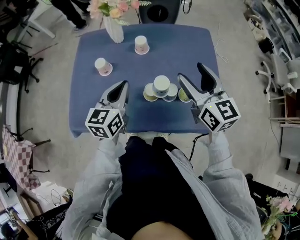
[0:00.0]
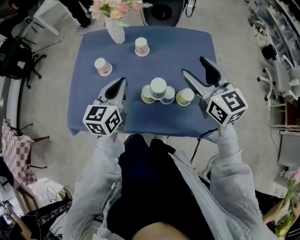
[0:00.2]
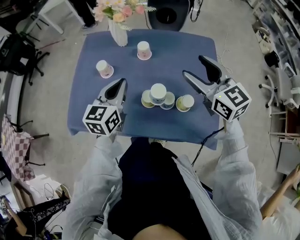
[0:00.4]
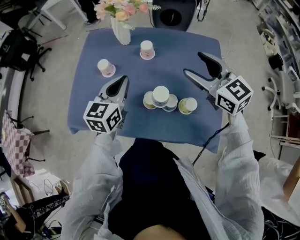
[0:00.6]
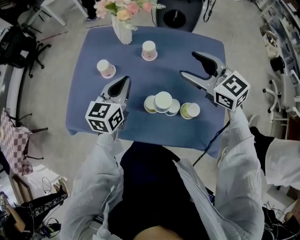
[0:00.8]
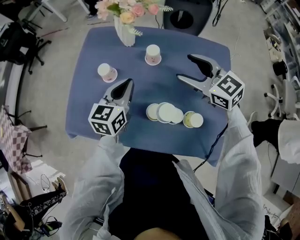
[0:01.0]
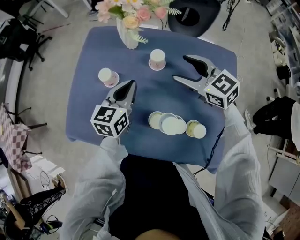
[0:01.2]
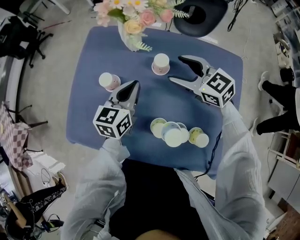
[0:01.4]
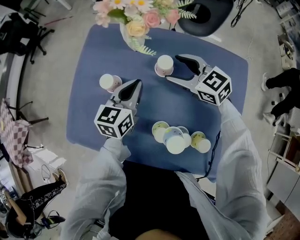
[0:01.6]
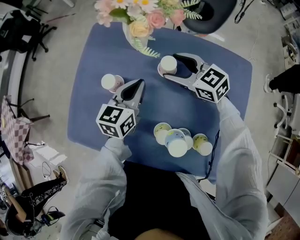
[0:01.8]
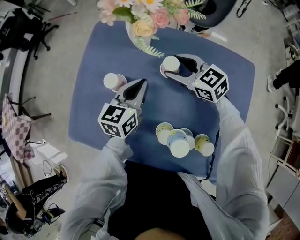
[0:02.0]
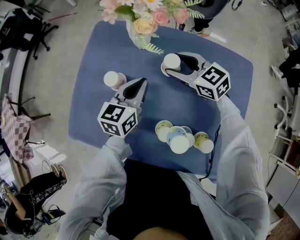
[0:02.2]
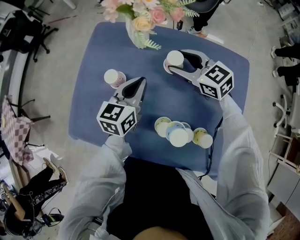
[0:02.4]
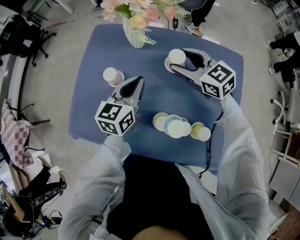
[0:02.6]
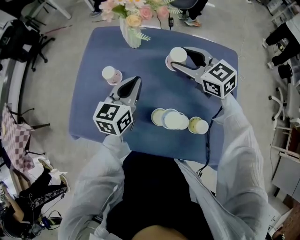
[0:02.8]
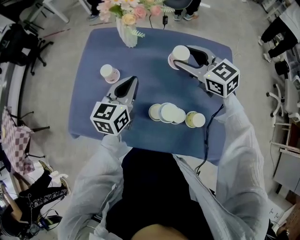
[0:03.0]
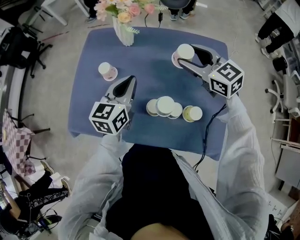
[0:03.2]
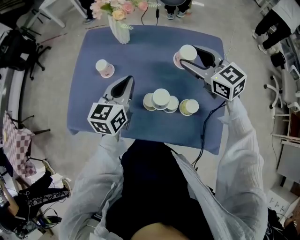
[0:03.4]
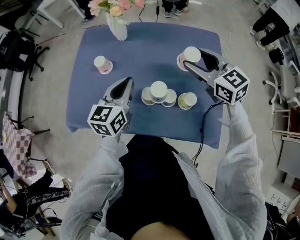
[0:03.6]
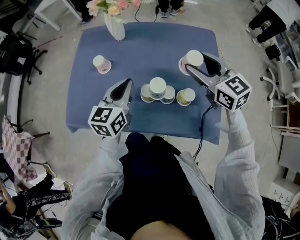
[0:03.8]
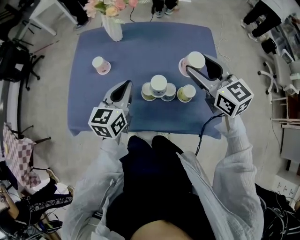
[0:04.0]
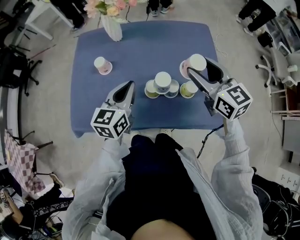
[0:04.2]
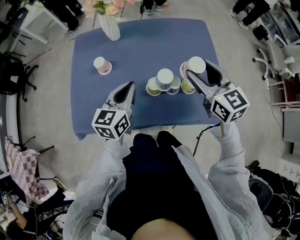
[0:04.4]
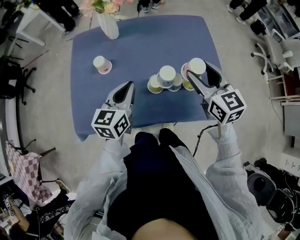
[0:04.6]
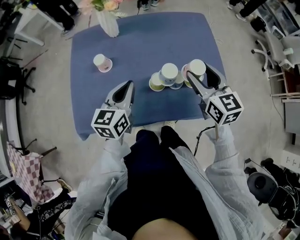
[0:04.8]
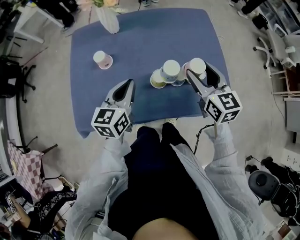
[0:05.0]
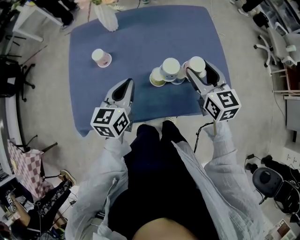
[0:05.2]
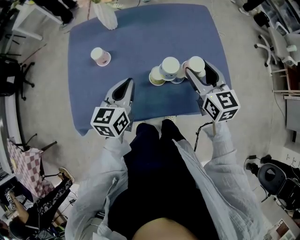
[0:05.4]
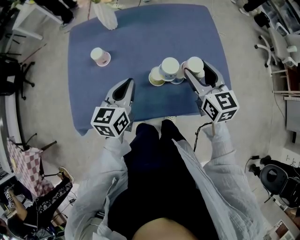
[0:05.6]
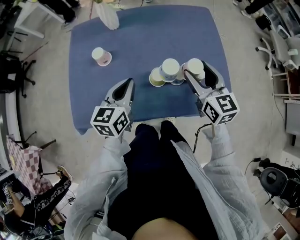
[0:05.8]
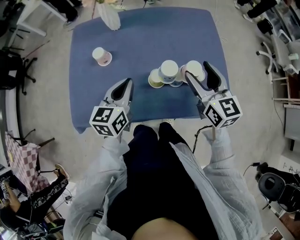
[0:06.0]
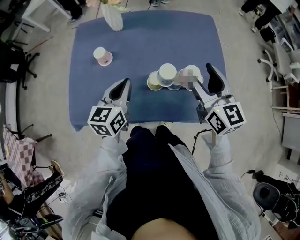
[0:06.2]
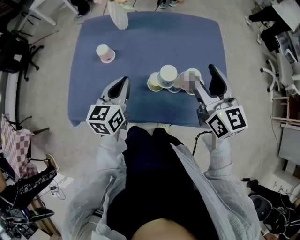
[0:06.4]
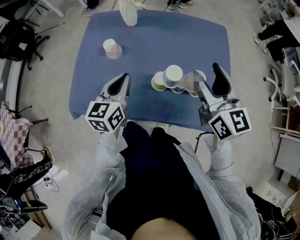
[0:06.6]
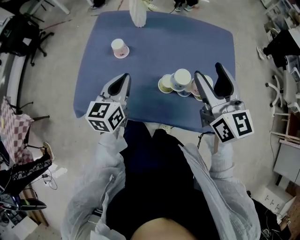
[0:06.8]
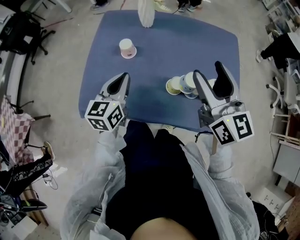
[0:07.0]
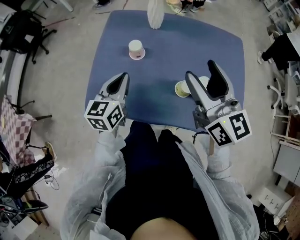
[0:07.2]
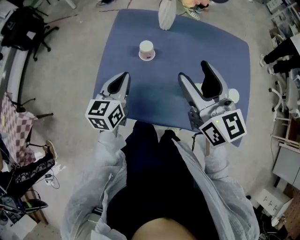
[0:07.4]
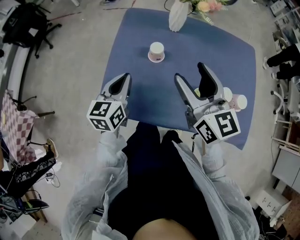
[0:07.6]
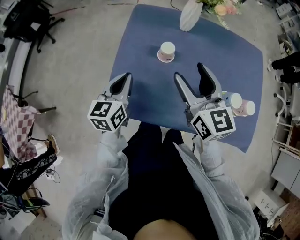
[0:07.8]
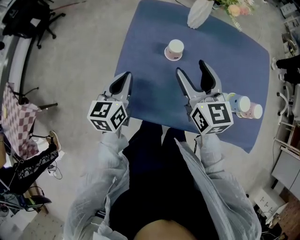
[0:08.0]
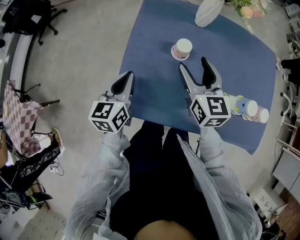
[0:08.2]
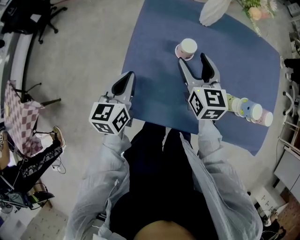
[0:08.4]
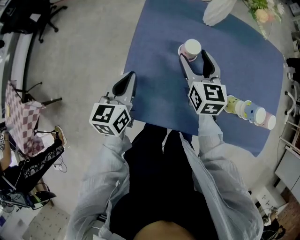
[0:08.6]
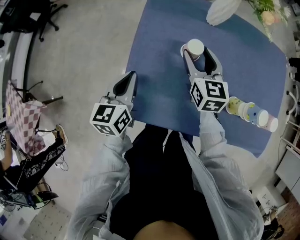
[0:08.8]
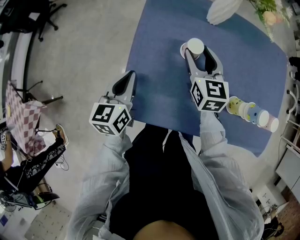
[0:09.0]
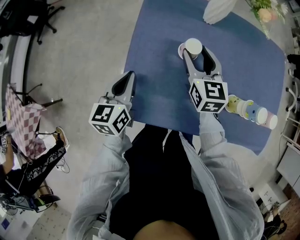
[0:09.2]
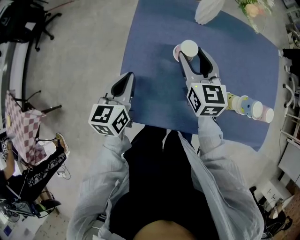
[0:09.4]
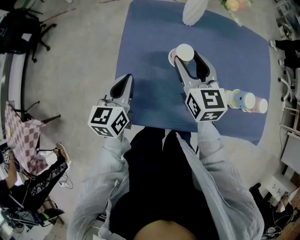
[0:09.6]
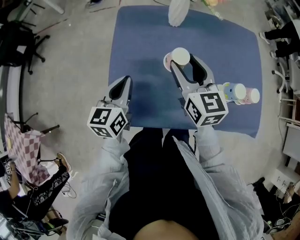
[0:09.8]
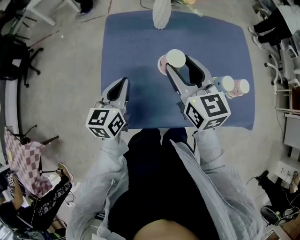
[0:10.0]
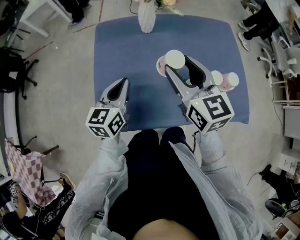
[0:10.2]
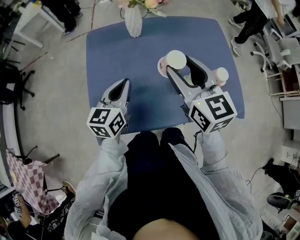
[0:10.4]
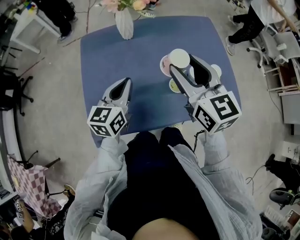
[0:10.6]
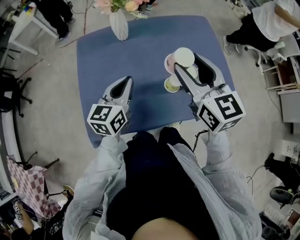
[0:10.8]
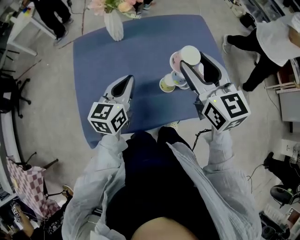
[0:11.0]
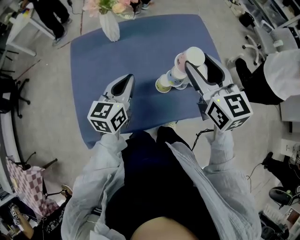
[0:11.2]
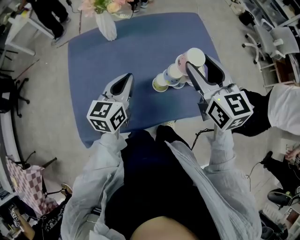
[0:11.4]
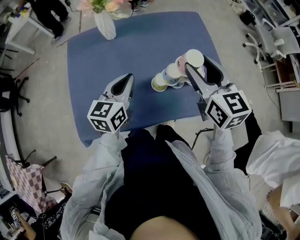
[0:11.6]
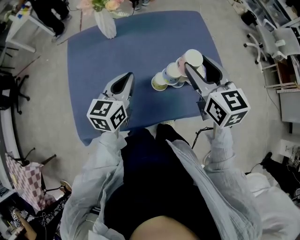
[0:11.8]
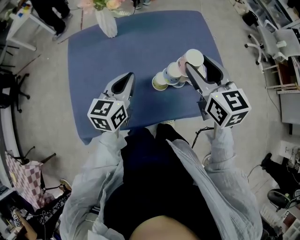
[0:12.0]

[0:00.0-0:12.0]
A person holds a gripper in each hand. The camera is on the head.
0:00.0 to 0:01.6: The left gripper shifts by some 20 cm, while the right gripper shifts by roughly 30 cm, and turns by approximately 50 degrees.
0:01.6 to 0:03.0: The left gripper goes about 10 cm backward and upward. The right gripper is displaced upward and backward by about 10 cm.
0:03.0 to 0:04.4: The left gripper goes some 10 cm backward, while the right gripper is displaced backward by roughly 20 cm, and swivels roughly 30 degrees.
0:06.0 to 0:07.6: The two grippers go some 25 cm to the left.
0:07.6 to 0:09.0: The right gripper travels downward, forward and to the left by about 25 cm, while the left gripper heads to the left and downward, covering roughly 10 cm.
0:09.0 to 0:10.4: The right gripper goes about 25 cm upward, to the right and backward, while the left gripper travels to the right and upward by roughly 20 cm, and swivels some 30 degrees.
0:10.4 to 0:12.0: Both grippers travel together to the right, roughly 15 cm.

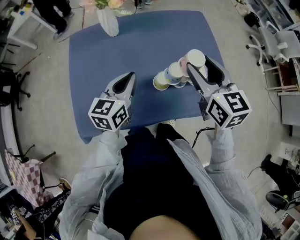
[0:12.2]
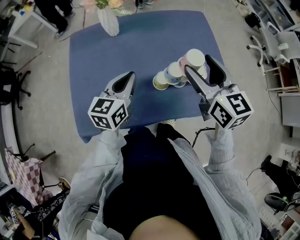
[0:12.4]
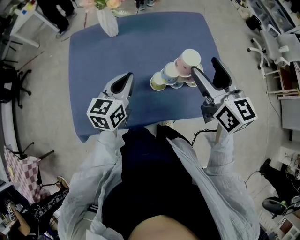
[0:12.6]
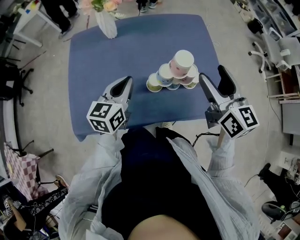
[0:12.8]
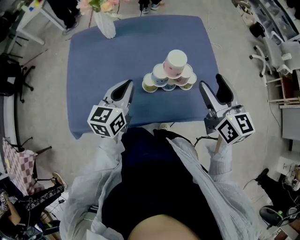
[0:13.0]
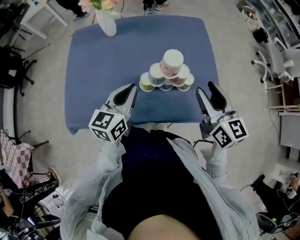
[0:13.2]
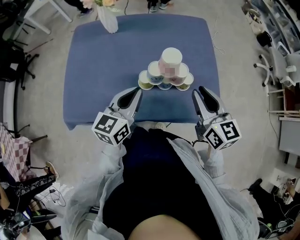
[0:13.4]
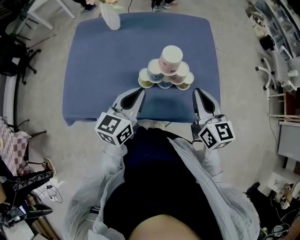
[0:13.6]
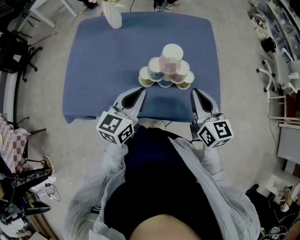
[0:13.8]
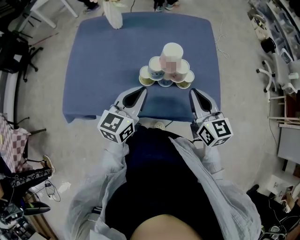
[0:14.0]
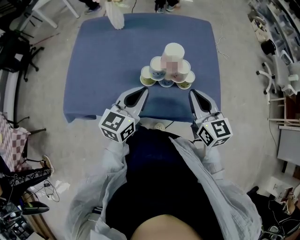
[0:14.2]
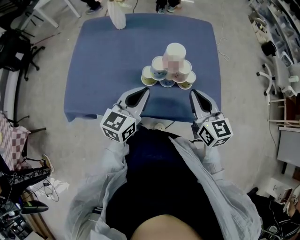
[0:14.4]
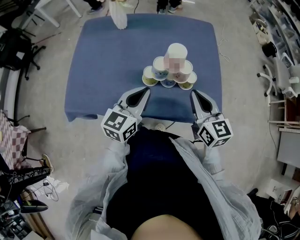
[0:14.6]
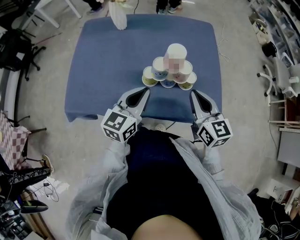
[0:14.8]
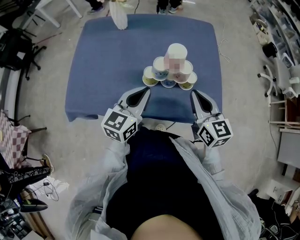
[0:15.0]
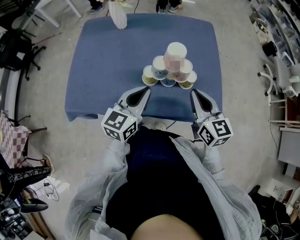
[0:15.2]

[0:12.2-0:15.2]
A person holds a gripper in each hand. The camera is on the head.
0:12.2 to 0:13.8: The right gripper shifts about 15 cm to the right, downward and backward, and closes up. The left gripper goes some 15 cm to the right and backward.
0:13.8 to 0:15.2: The grippers make only small movements.

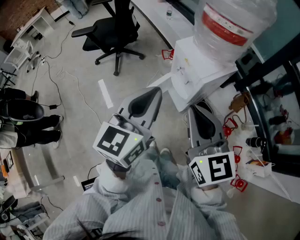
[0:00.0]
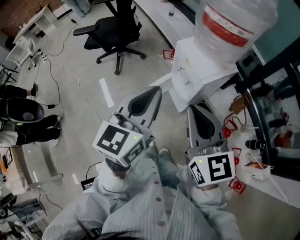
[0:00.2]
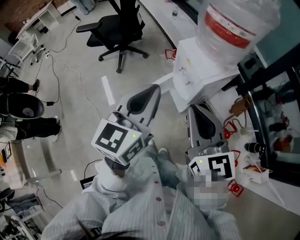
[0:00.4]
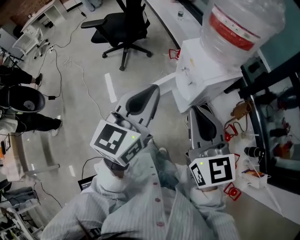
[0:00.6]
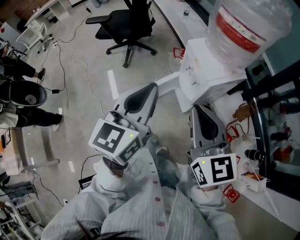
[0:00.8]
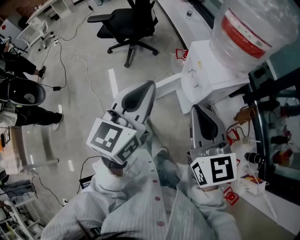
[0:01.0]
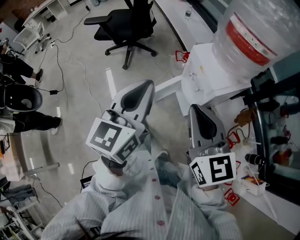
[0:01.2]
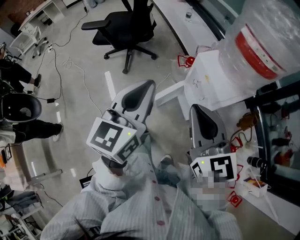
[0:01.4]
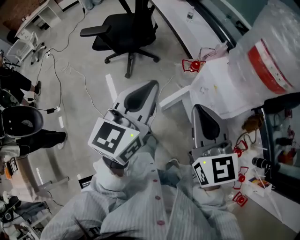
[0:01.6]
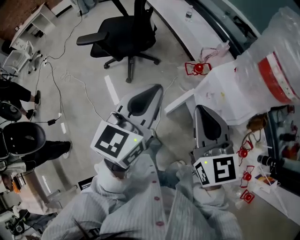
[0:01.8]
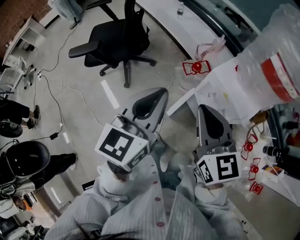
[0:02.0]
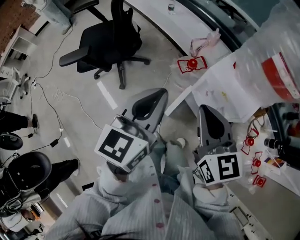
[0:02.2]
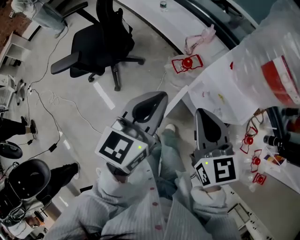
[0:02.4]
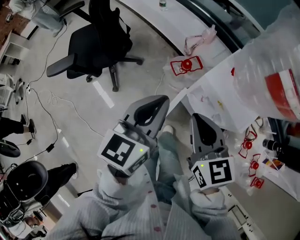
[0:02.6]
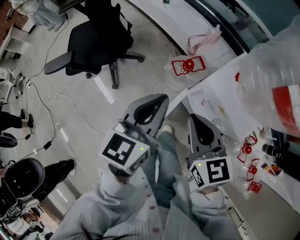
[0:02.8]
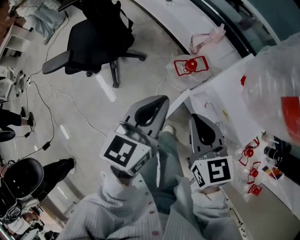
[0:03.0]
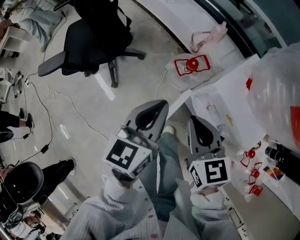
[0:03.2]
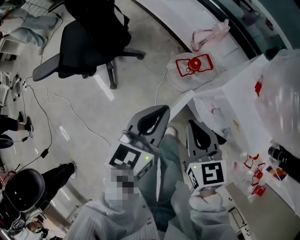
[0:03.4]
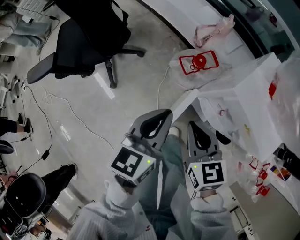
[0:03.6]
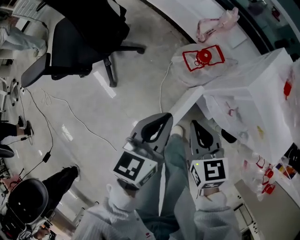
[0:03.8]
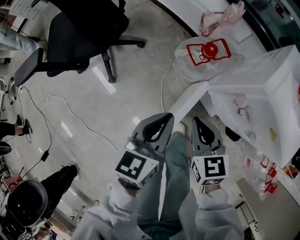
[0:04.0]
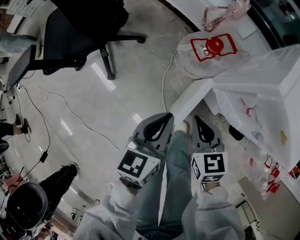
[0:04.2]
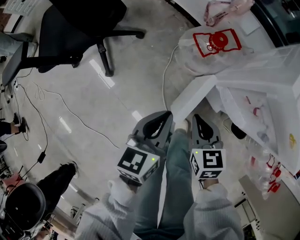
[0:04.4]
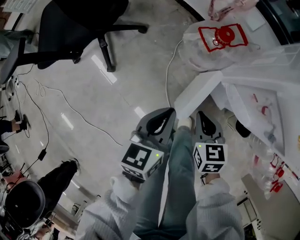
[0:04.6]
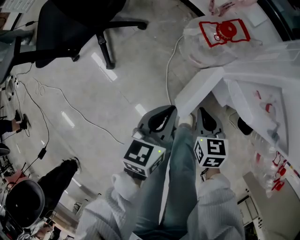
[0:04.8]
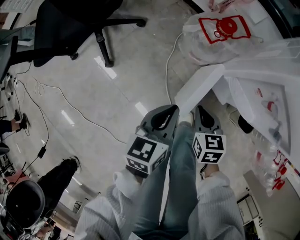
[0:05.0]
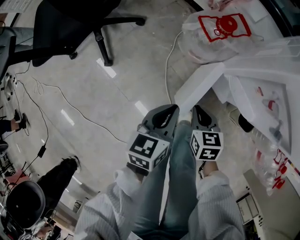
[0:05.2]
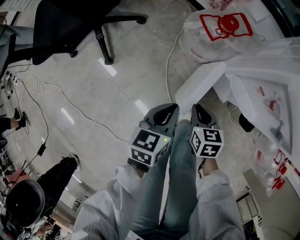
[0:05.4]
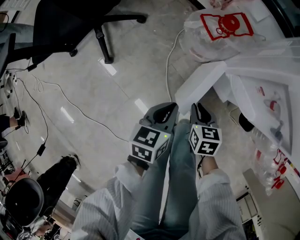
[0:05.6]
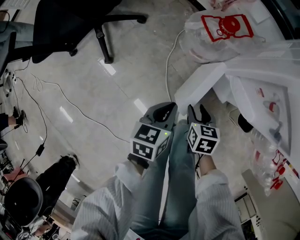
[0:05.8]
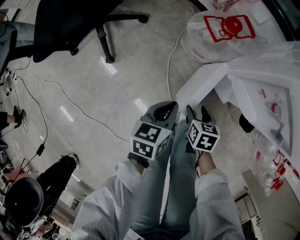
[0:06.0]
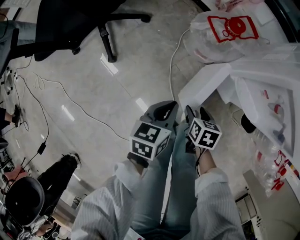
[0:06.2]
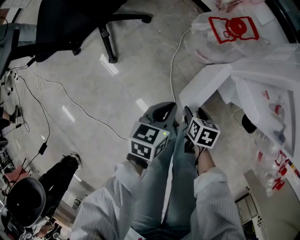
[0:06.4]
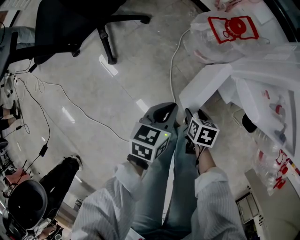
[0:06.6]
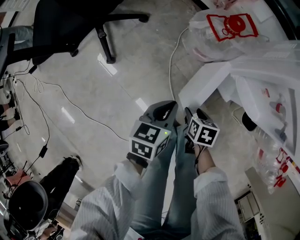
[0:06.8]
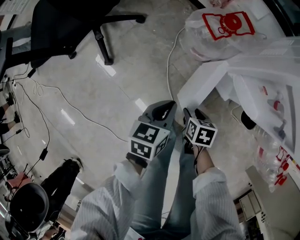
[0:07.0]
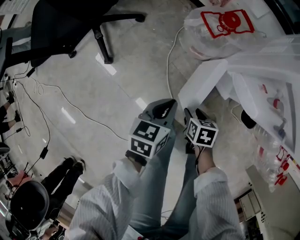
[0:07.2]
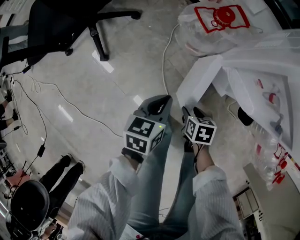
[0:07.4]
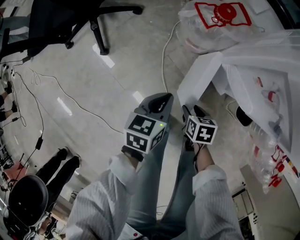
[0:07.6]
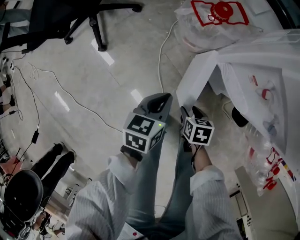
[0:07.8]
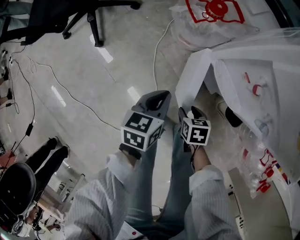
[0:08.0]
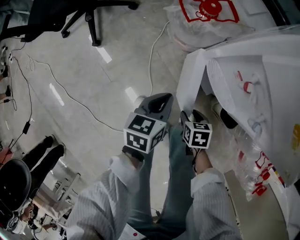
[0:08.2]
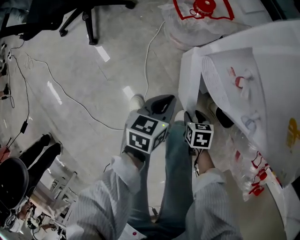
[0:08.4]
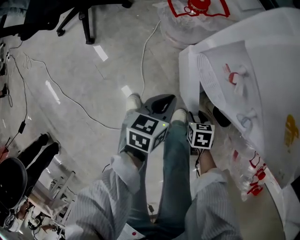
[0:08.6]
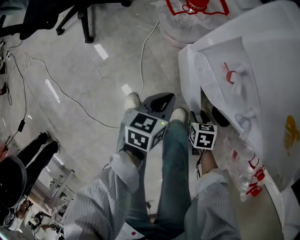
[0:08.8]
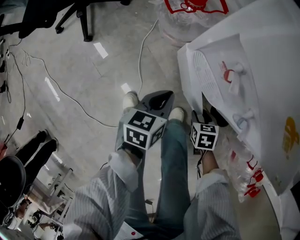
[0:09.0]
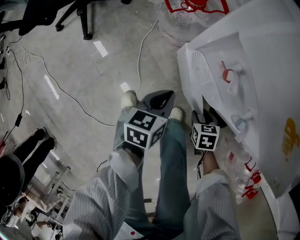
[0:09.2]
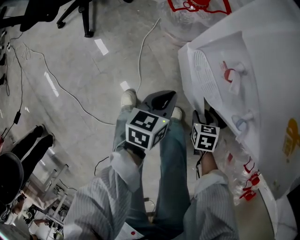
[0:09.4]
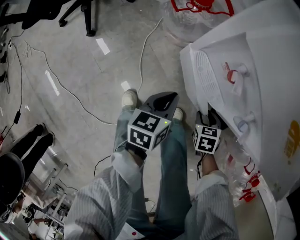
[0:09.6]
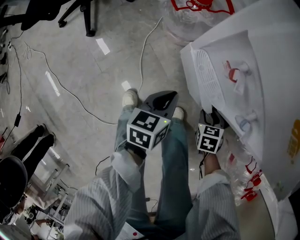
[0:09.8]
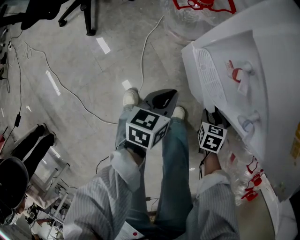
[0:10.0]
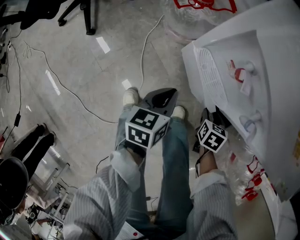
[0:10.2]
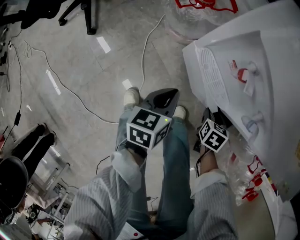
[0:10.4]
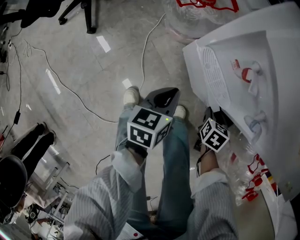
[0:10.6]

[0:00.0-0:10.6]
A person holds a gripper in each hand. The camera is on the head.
0:00.0 to 0:01.6: Both grippers travel together forward and to the left, roughly 20 cm.
0:01.6 to 0:03.0: The two grippers go roughly 20 cm forward and downward.
0:03.0 to 0:04.6: Both grippers travel together downward, about 35 cm. The right gripper swivels some 20 degrees.
0:04.6 to 0:06.0: The two grippers go roughly 10 cm downward. The right gripper turns by approximately 20 degrees, and opens its fingers.
0:06.0 to 0:07.6: The right gripper ends up approximately 5 cm from where it was.
0:07.6 to 0:09.0: Both grippers travel together to the right, approximately 20 cm. The right gripper swivels approximately 20 degrees.
0:09.0 to 0:10.6: The right gripper travels to the right by about 5 cm, and changes its angle by approximately 20 degrees.
